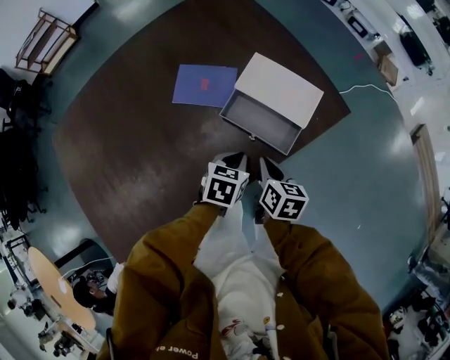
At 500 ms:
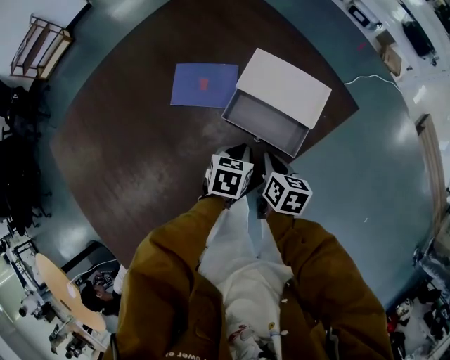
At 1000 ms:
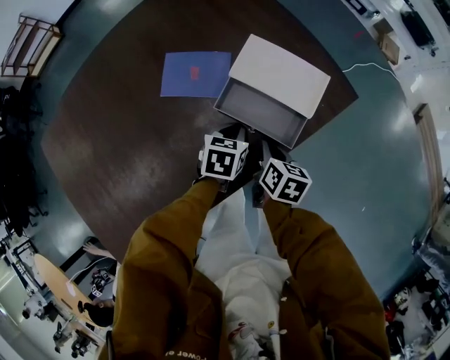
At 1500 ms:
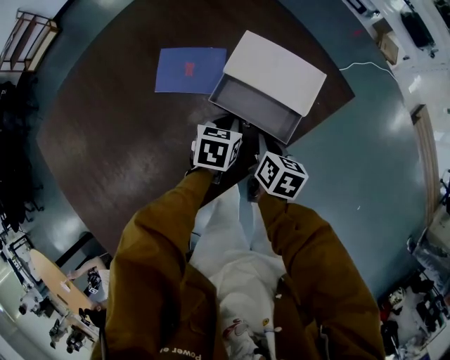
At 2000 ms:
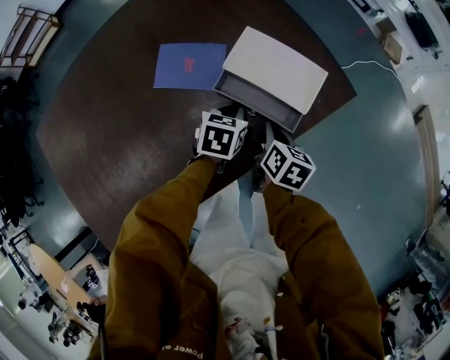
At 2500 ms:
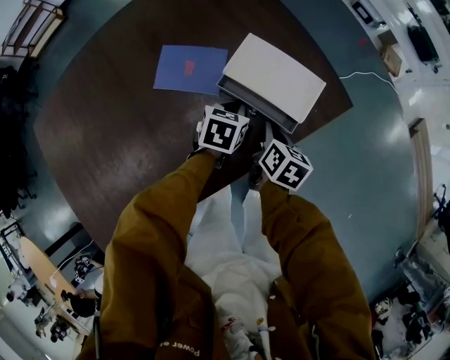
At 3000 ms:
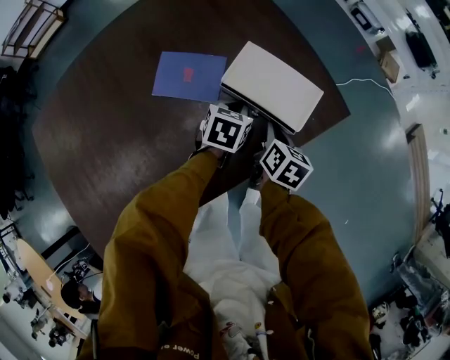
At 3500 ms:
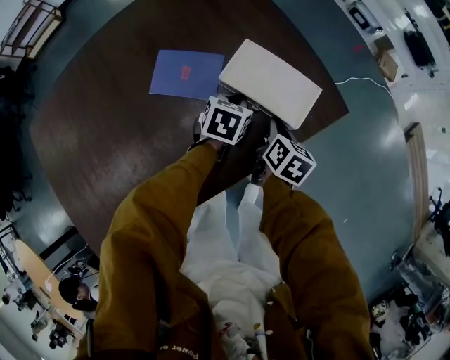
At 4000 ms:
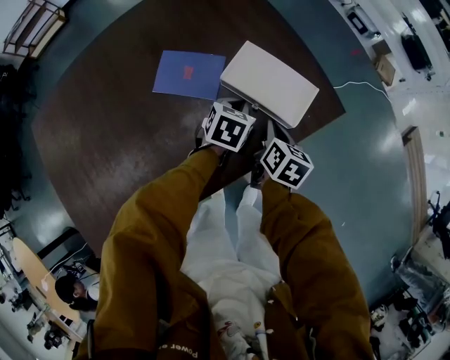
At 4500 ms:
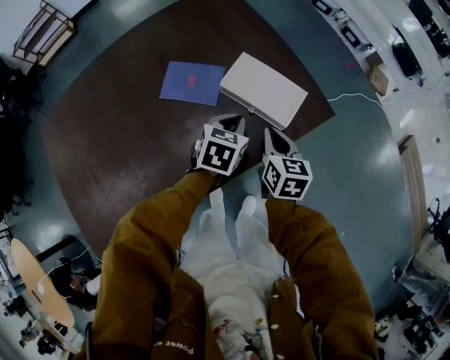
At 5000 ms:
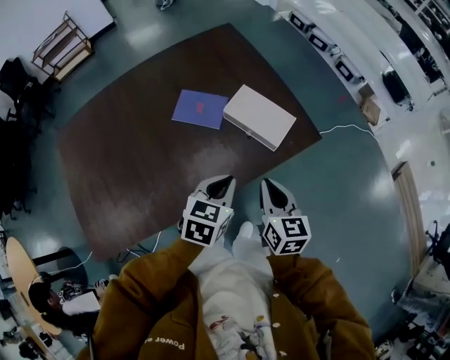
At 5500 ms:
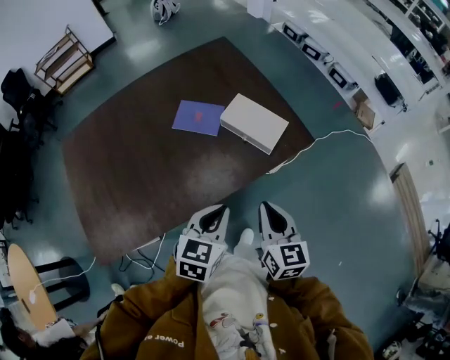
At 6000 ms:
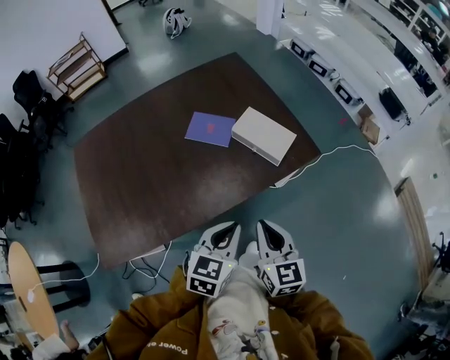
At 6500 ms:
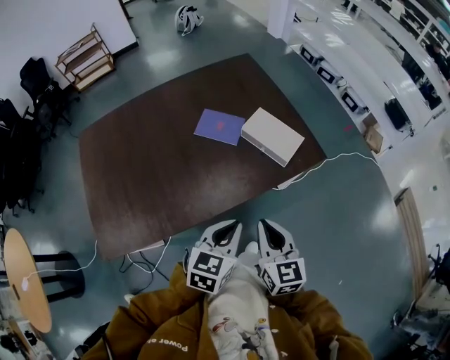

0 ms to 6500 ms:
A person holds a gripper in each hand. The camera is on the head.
0 ms to 2000 ms: Both grippers move forward, roughly 10 cm.
2000 ms to 4500 ms: Both grippers move upward, about 10 cm. The right gripper changes its angle by some 30 degrees.
4500 ms to 6500 ms: Both grippers move backward and upward, roughly 30 cm. The right gripper changes its angle by some 20 degrees.

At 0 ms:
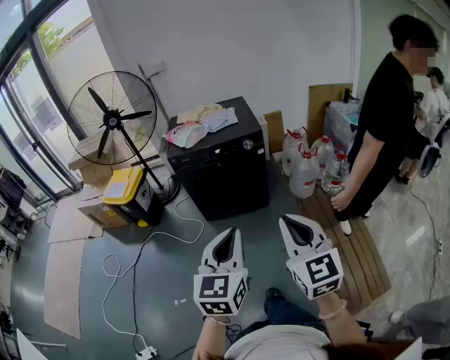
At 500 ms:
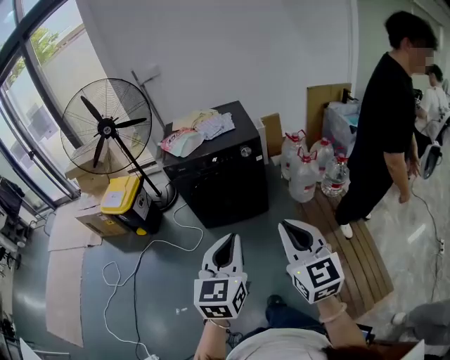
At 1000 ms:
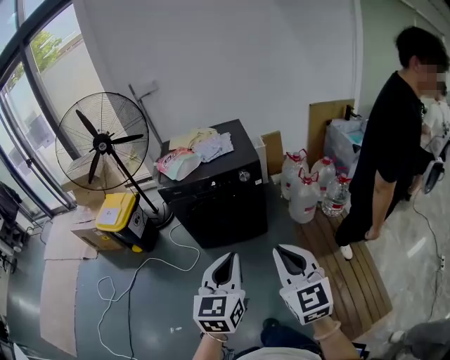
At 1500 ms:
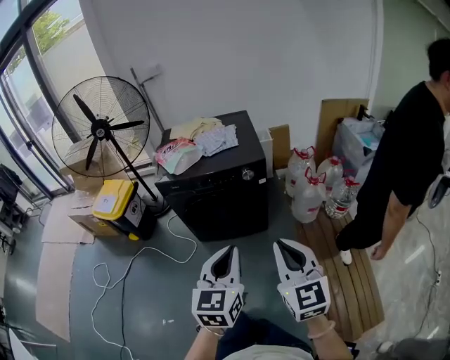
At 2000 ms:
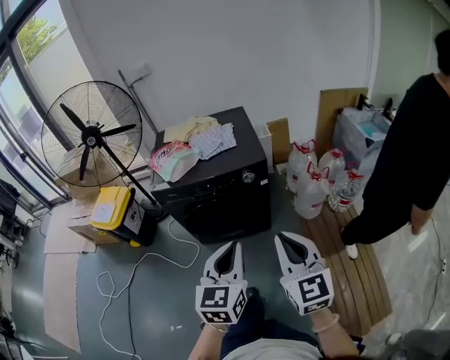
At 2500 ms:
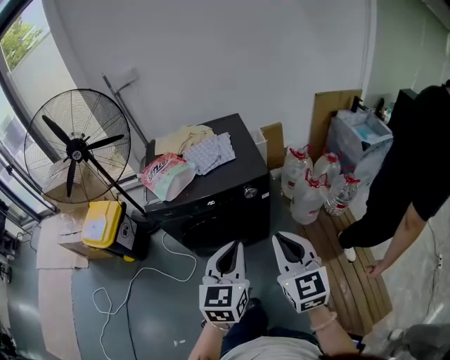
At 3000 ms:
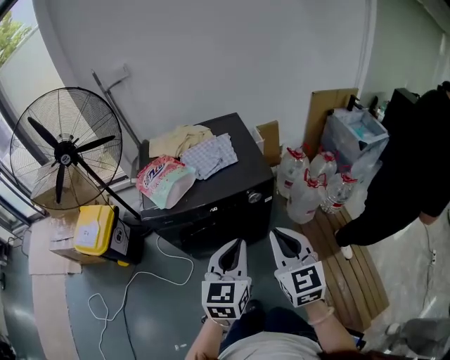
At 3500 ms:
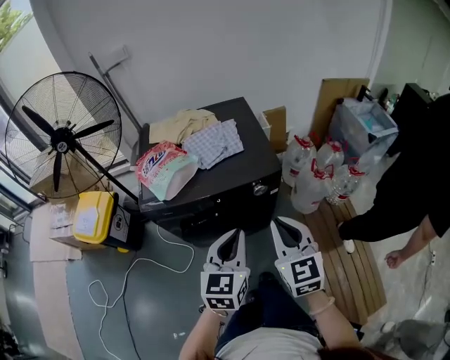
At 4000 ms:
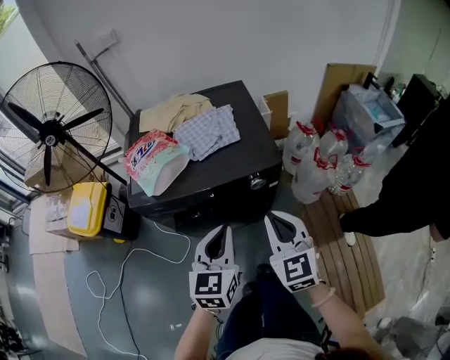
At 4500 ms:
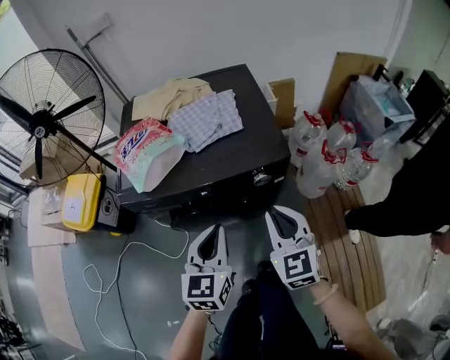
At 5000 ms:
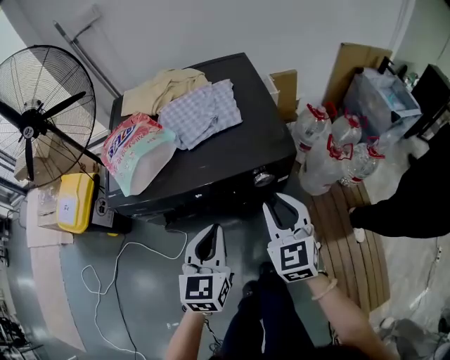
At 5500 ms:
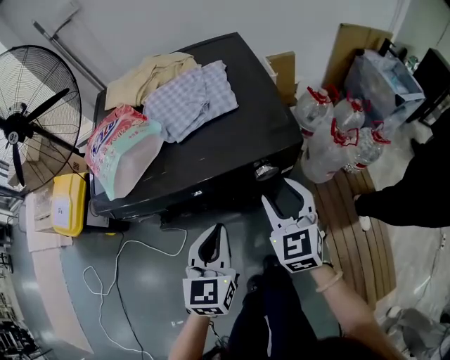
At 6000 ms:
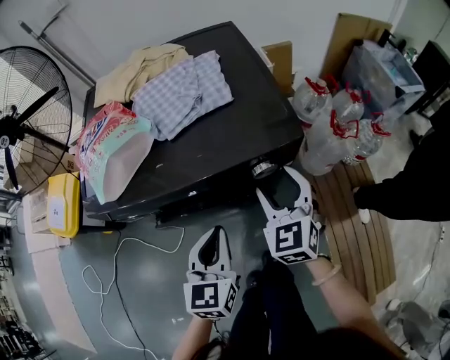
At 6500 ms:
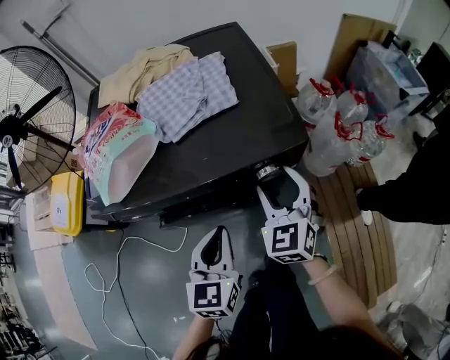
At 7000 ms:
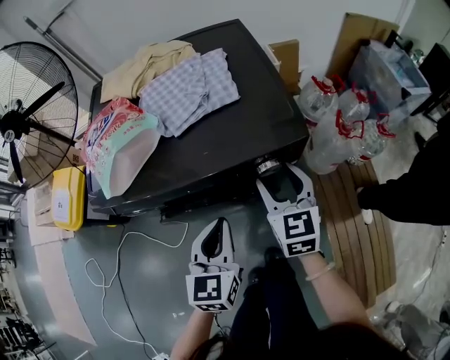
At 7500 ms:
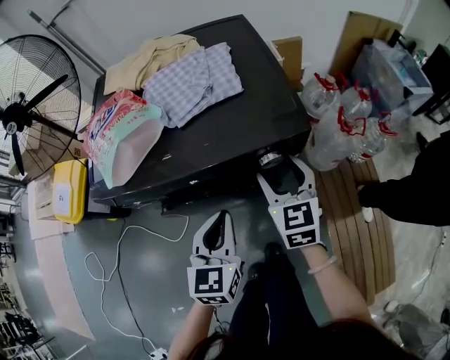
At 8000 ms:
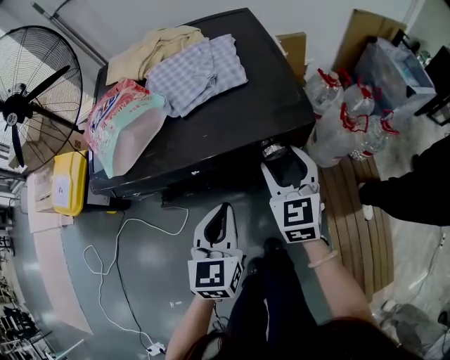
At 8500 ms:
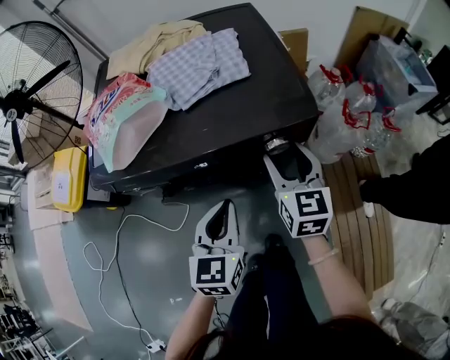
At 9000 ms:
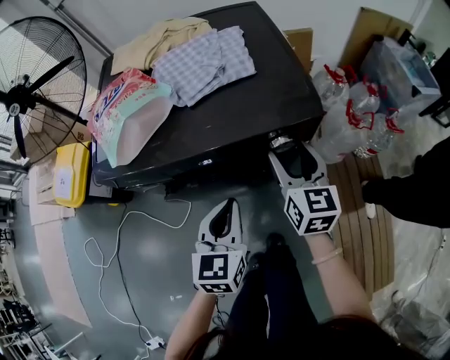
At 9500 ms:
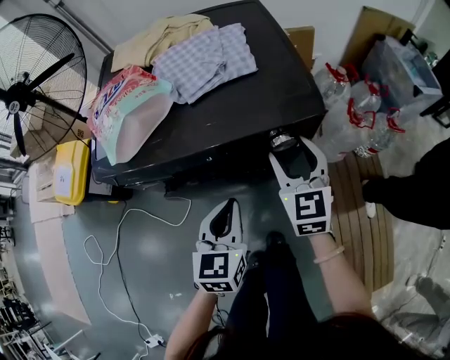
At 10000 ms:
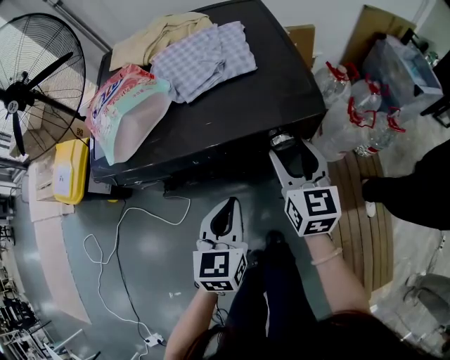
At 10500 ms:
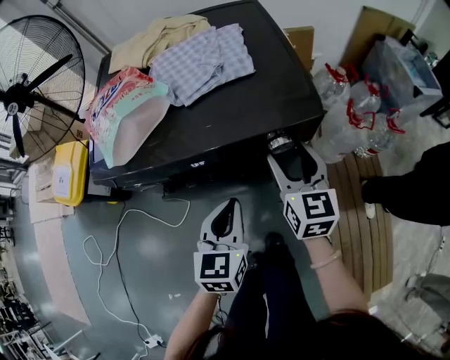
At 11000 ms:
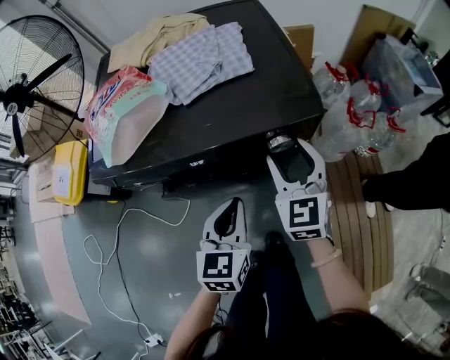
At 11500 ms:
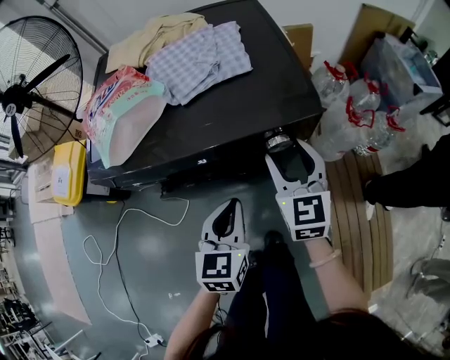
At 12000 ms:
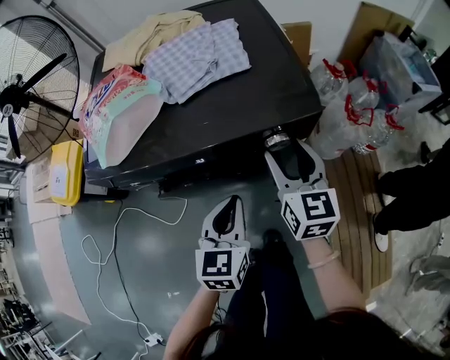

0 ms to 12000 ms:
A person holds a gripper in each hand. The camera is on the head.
0 ms to 2000 ms: The two grippers go roughly 30 cm forward.
2000 ms to 4000 ms: The right gripper heads forward and downward, covering about 25 cm. The left gripper moves forward, roughly 25 cm.
4000 ms to 6000 ms: The right gripper shifts approximately 25 cm downward and forward, and opens. Meanwhile the left gripper moves downward, some 20 cm.

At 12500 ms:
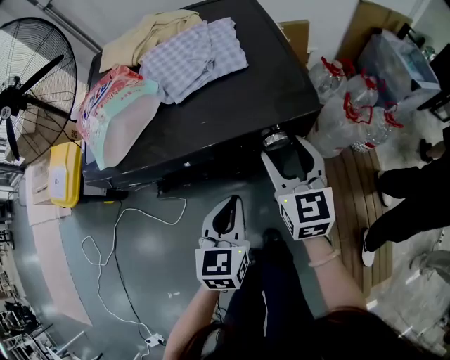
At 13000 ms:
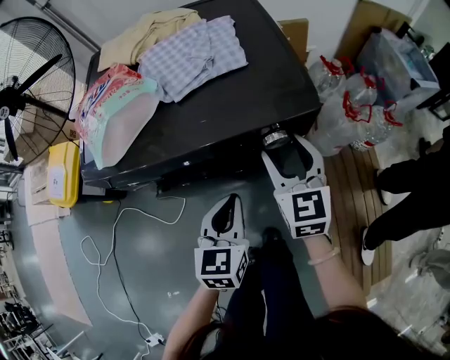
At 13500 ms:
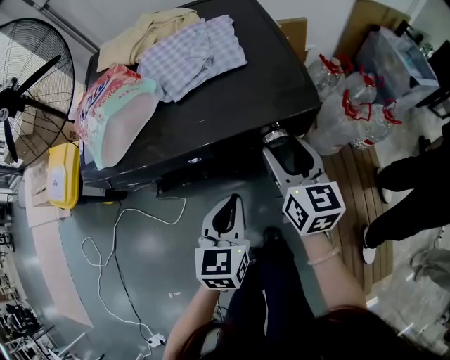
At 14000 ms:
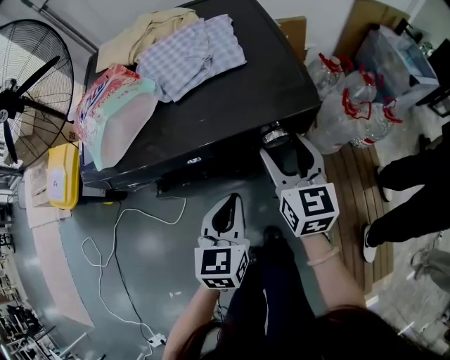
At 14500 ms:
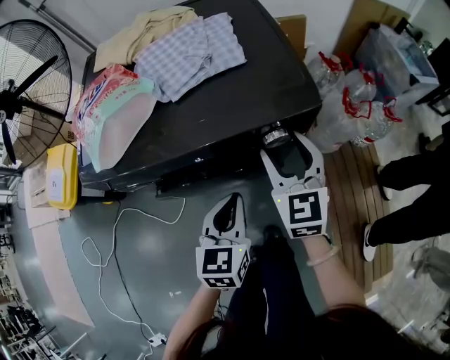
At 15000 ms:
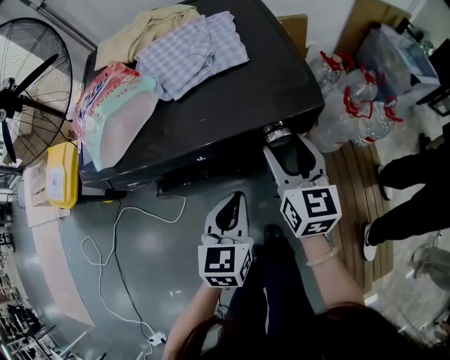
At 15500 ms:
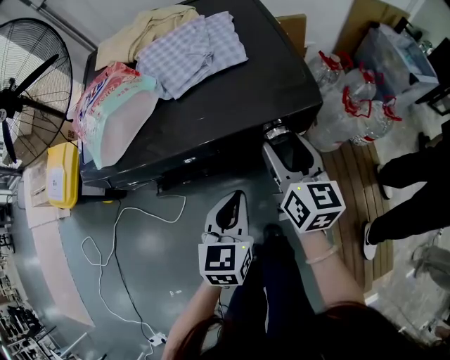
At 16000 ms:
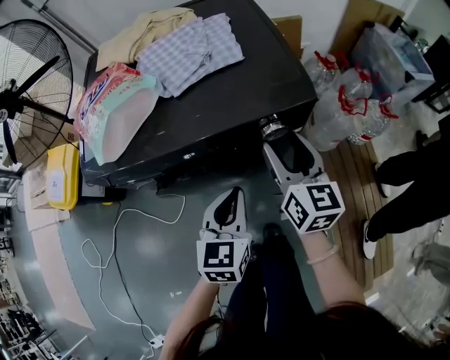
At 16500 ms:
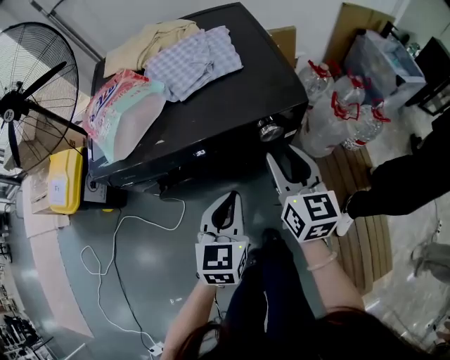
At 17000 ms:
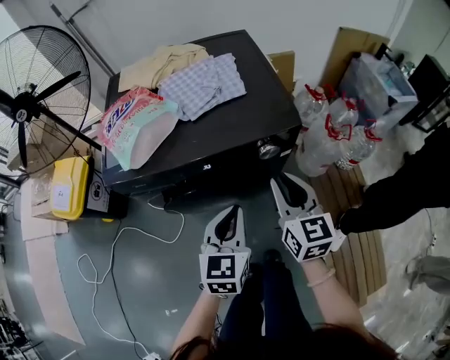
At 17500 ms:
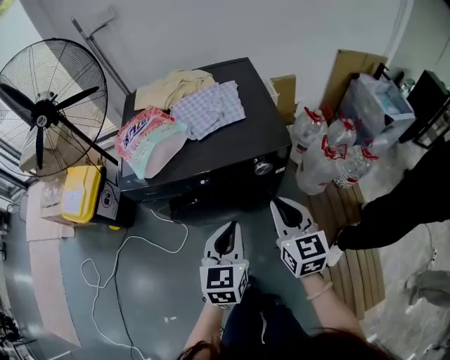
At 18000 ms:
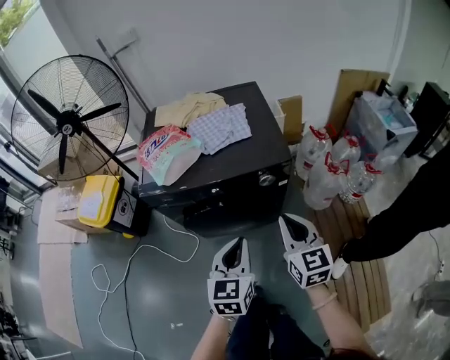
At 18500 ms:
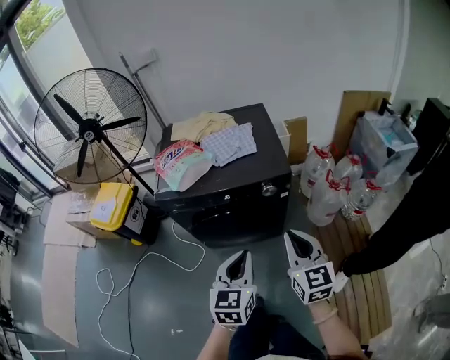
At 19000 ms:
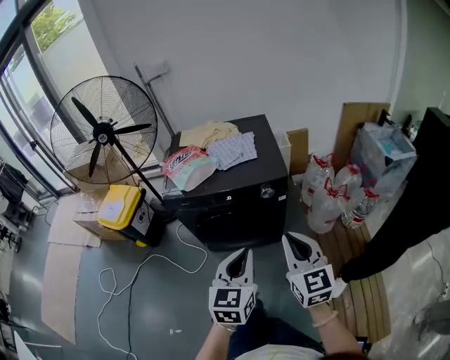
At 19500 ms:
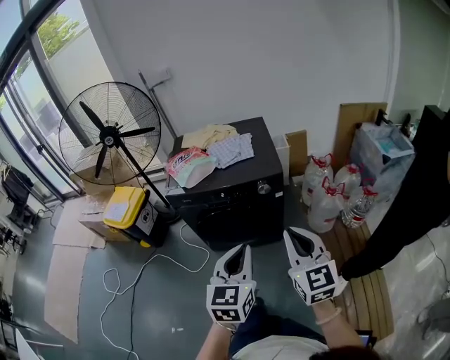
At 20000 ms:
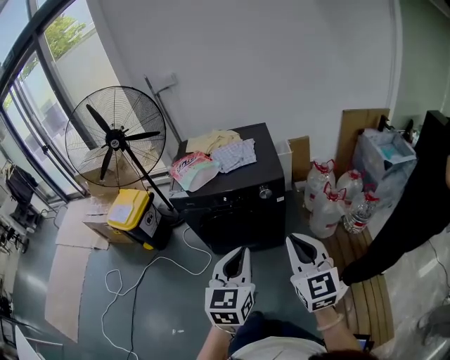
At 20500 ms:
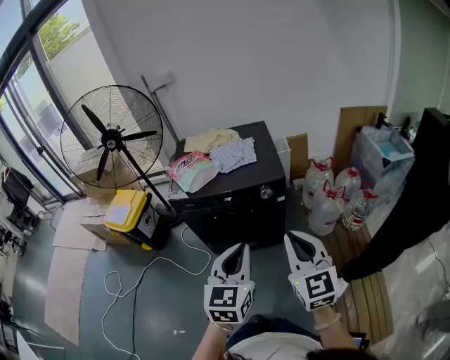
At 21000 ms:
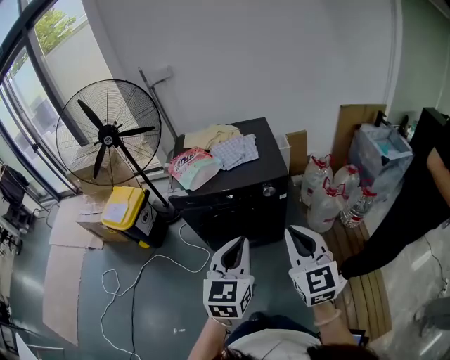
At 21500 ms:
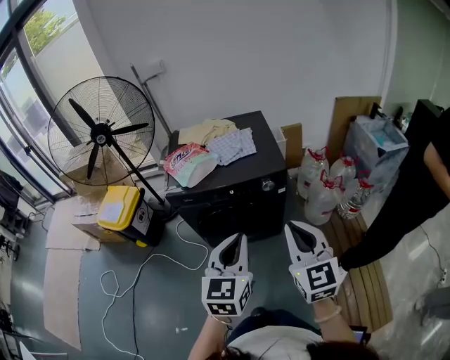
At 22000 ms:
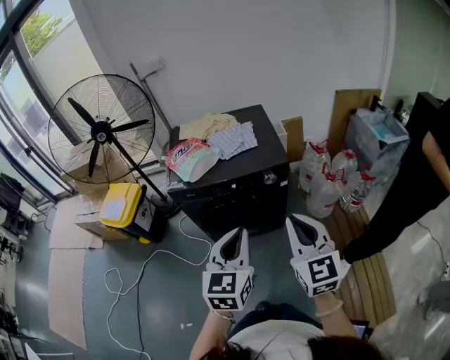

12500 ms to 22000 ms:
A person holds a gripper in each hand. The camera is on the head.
12500 ms to 14500 ms: There are only small adjustments of the grippers.
14500 ms to 16500 ms: The right gripper heads backward, covering some 5 cm, and rotates approximately 20 degrees.
16500 ms to 18000 ms: The left gripper is displaced upward and backward by approximately 15 cm. The right gripper is displaced backward and upward by roughly 15 cm, and closes.
18000 ms to 20000 ms: Both grippers travel together backward and upward, some 25 cm.
20000 ms to 22000 ms: The left gripper is displaced to the left and forward by about 10 cm. The right gripper is displaced to the left by roughly 5 cm.
